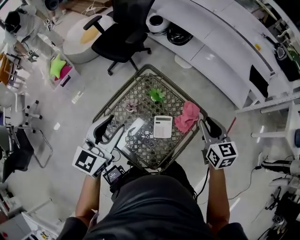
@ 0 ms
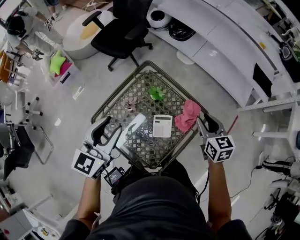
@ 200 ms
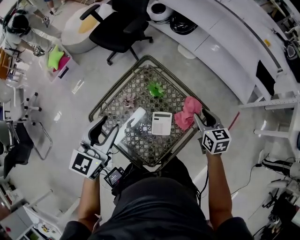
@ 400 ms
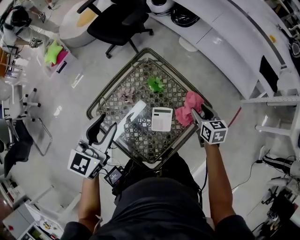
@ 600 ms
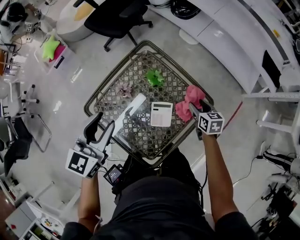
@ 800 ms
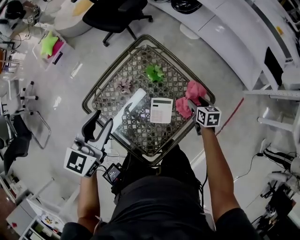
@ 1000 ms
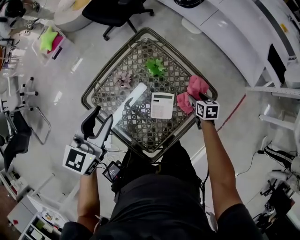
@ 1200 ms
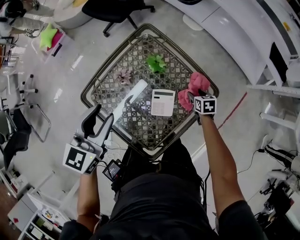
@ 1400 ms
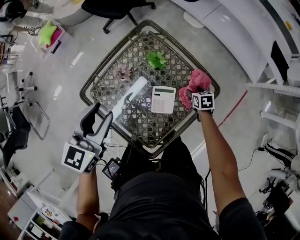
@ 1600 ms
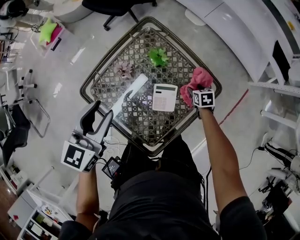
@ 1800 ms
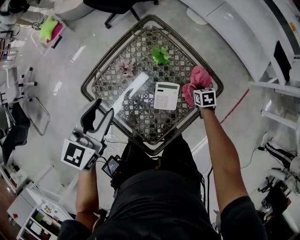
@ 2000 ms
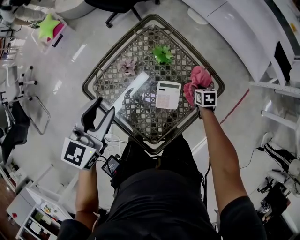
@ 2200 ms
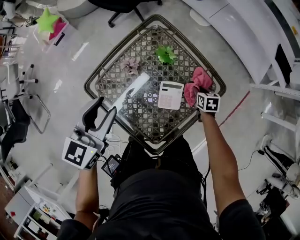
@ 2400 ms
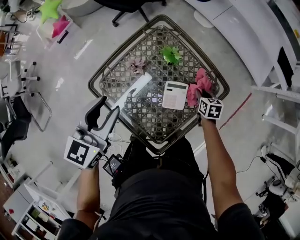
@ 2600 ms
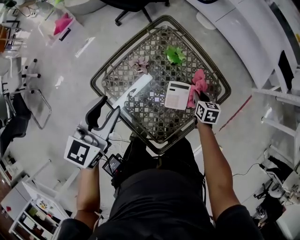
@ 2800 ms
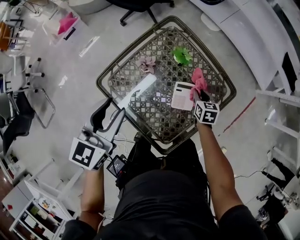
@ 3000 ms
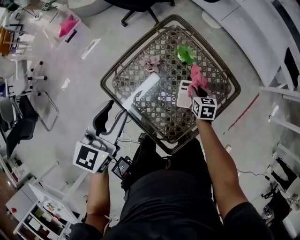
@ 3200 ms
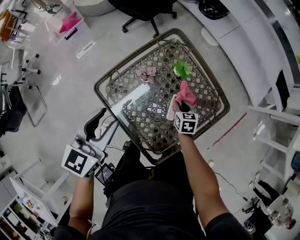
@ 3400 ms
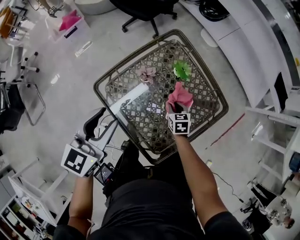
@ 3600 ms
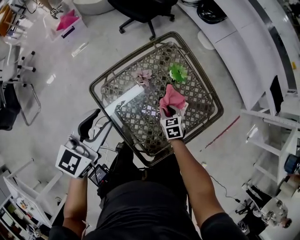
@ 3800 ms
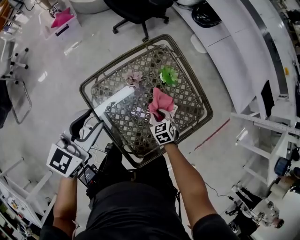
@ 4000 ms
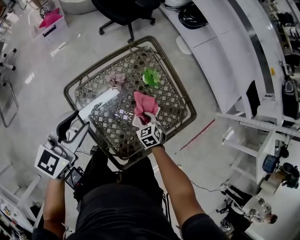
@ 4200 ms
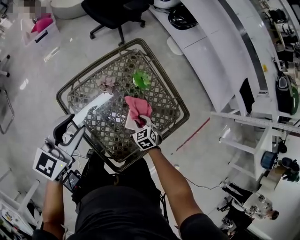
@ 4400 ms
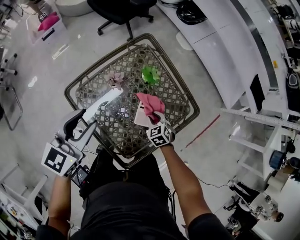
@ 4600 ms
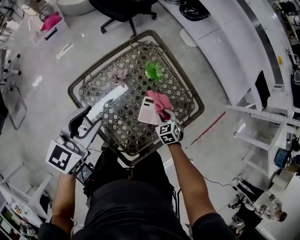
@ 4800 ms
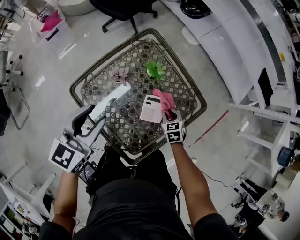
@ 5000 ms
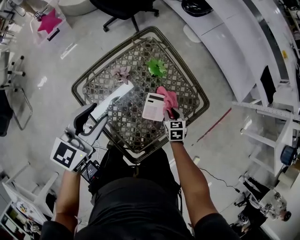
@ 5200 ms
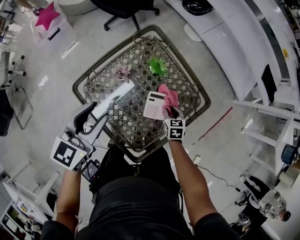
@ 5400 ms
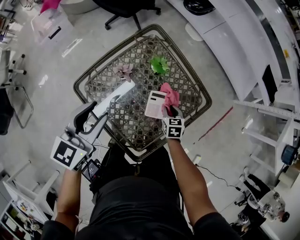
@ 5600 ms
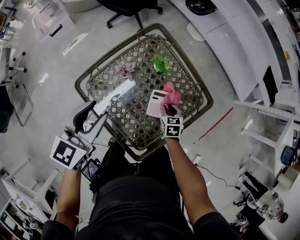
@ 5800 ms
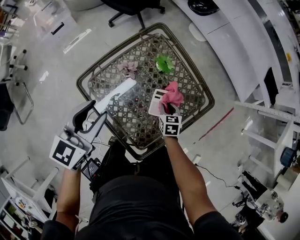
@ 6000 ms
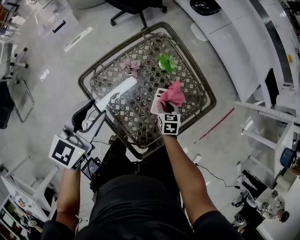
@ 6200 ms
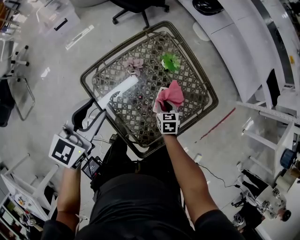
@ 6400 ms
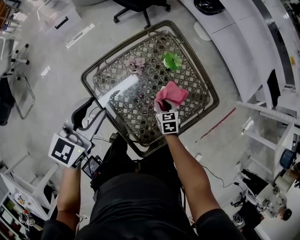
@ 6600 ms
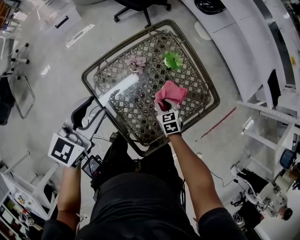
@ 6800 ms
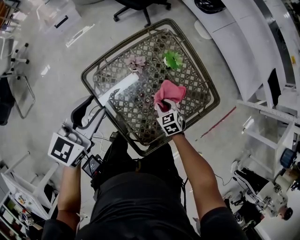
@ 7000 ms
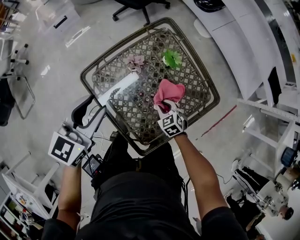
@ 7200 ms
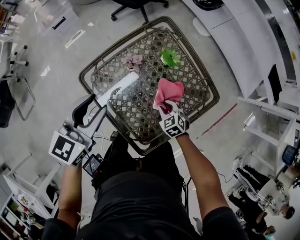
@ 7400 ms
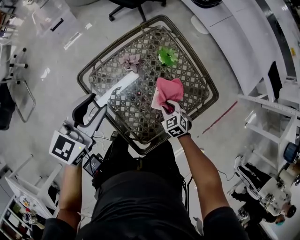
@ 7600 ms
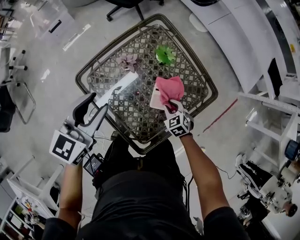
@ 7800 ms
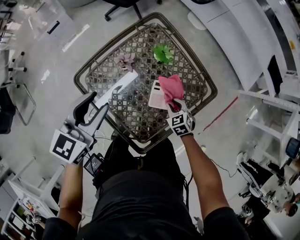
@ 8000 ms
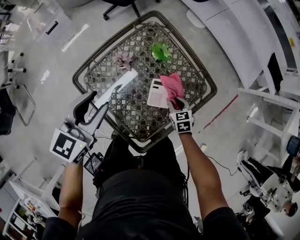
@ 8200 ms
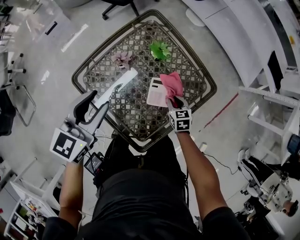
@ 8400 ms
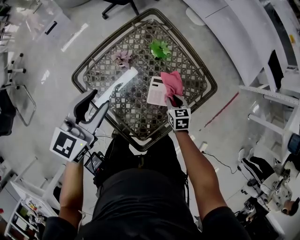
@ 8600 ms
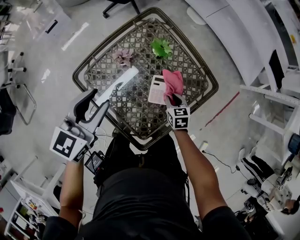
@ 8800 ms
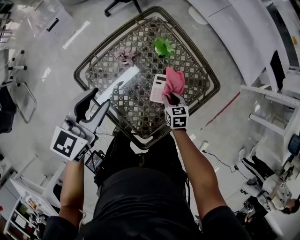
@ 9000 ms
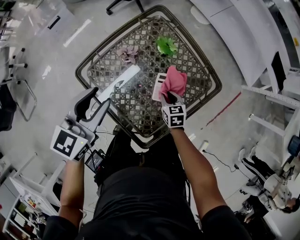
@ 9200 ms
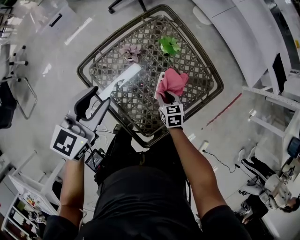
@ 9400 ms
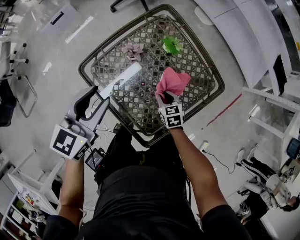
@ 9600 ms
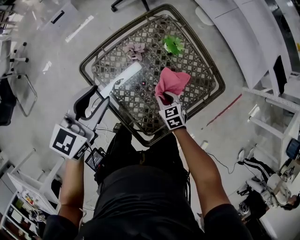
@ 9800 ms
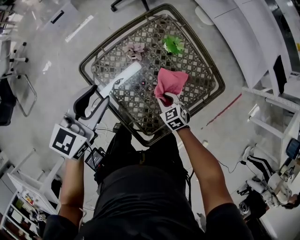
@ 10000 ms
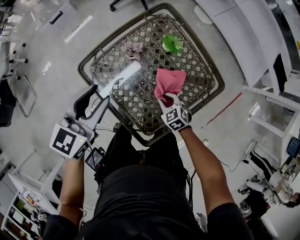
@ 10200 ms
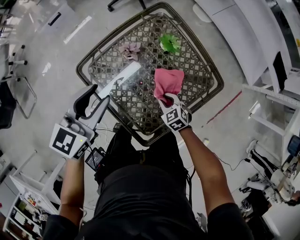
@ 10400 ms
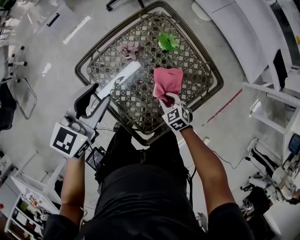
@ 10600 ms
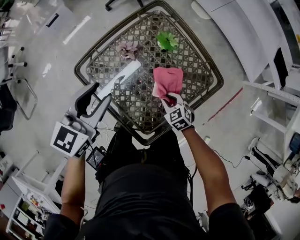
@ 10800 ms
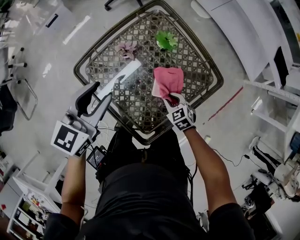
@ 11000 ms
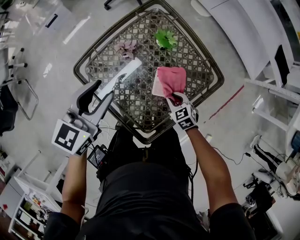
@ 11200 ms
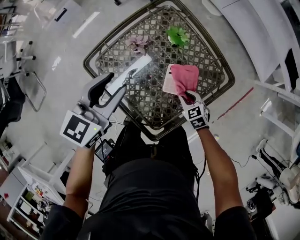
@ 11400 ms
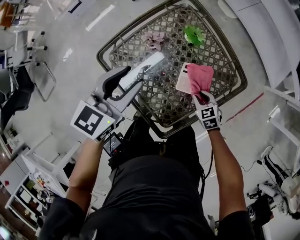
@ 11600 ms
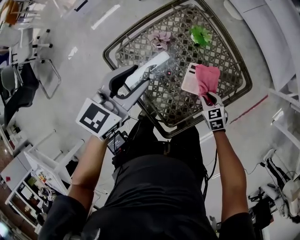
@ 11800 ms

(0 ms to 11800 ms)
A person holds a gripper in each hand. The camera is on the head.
0 ms - 1400 ms: The right gripper goes approximately 35 cm downward, tilts its fingers some 30 degrees downward, and opens up; the left gripper heads downward, covering some 10 cm.
1400 ms - 3000 ms: The right gripper goes about 10 cm to the left, and closes up, while the left gripper is displaced to the left by roughly 5 cm.
3000 ms - 4400 ms: The right gripper goes about 10 cm to the left and backward, and changes its angle by some 40 degrees.
4400 ms - 6000 ms: The right gripper goes to the right and returns, some 10 cm each way, and changes its angle by approximately 30 degrees.
6000 ms - 7400 ms: The right gripper shifts by roughly 5 cm, and swivels about 40 degrees.
7400 ms - 8800 ms: The right gripper is displaced to the right by about 5 cm, and turns by some 40 degrees.
8800 ms - 10400 ms: The right gripper travels to the left by about 10 cm, and rotates some 30 degrees.
10400 ms - 11800 ms: The right gripper is displaced to the right by approximately 10 cm.

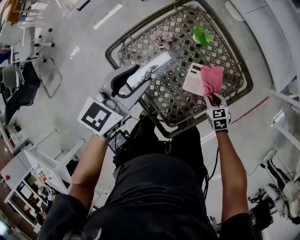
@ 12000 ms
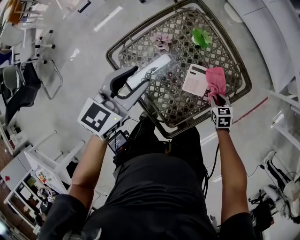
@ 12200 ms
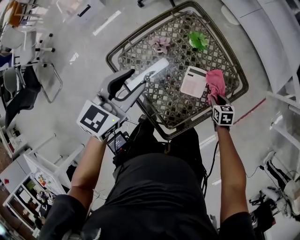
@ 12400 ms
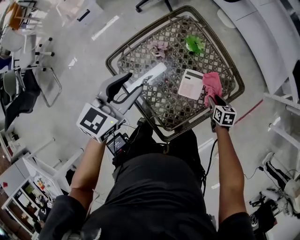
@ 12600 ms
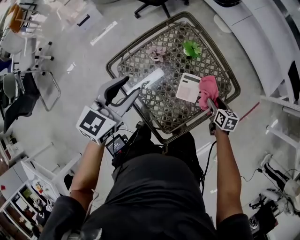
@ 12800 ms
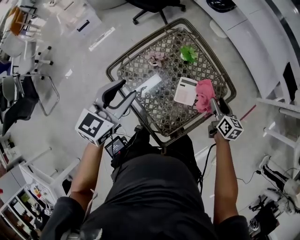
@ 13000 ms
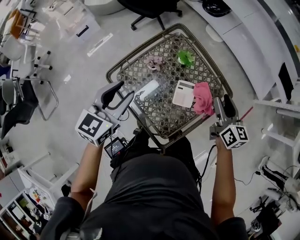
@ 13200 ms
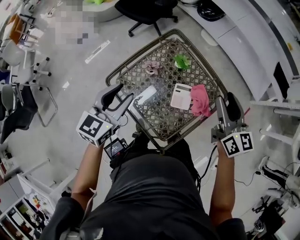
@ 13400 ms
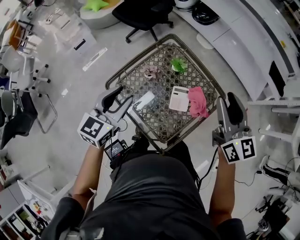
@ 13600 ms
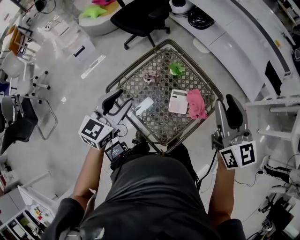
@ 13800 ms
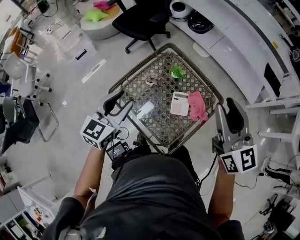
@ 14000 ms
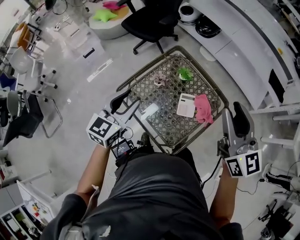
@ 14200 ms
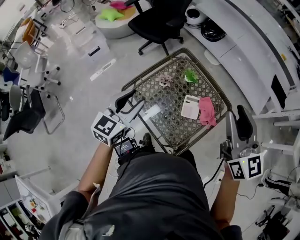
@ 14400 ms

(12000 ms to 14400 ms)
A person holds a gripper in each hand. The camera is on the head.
12000 ms - 13200 ms: The right gripper goes approximately 30 cm upward, tips its fingers upward by roughly 40 degrees, and opens up. The left gripper heads upward, covering some 5 cm.
13200 ms - 14400 ms: The left gripper ends up about 10 cm from where it was, while the right gripper moves upward and backward, about 30 cm, and turns by roughly 30 degrees.

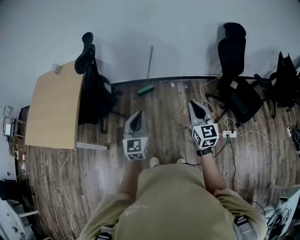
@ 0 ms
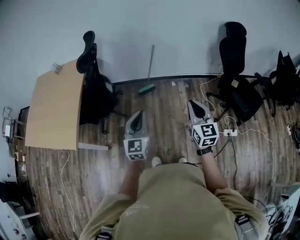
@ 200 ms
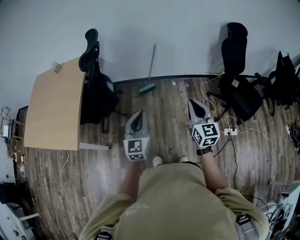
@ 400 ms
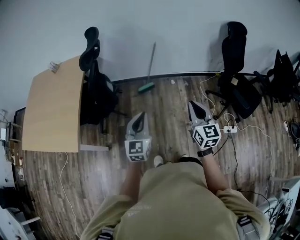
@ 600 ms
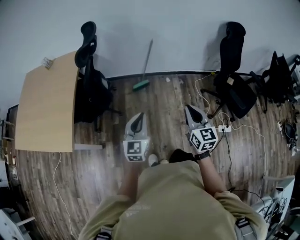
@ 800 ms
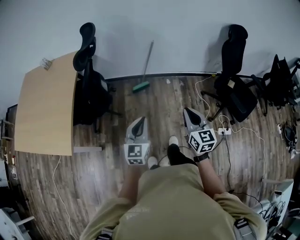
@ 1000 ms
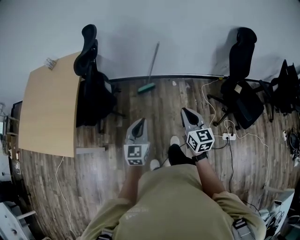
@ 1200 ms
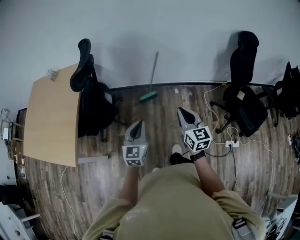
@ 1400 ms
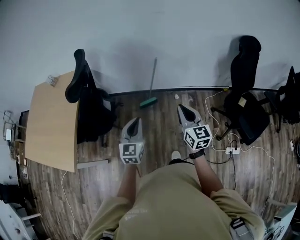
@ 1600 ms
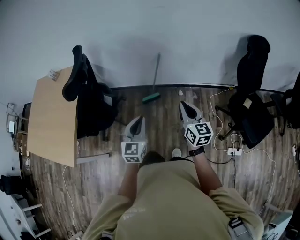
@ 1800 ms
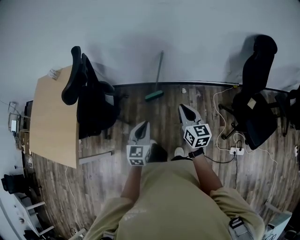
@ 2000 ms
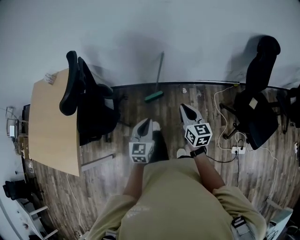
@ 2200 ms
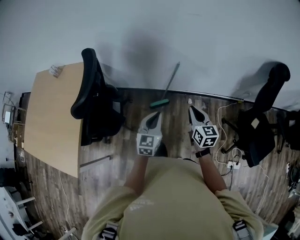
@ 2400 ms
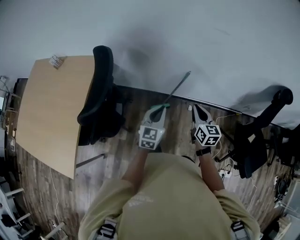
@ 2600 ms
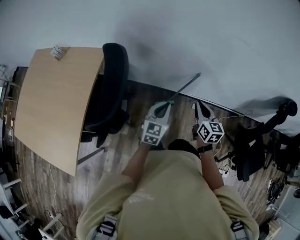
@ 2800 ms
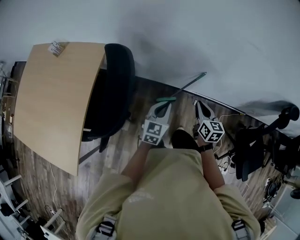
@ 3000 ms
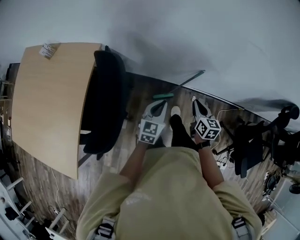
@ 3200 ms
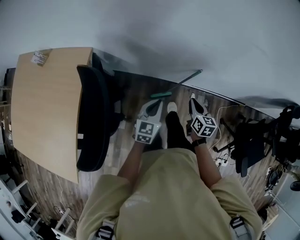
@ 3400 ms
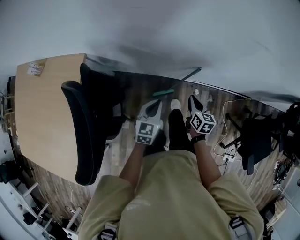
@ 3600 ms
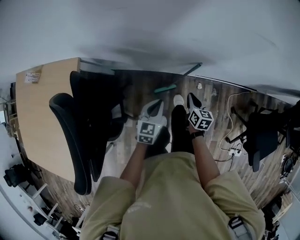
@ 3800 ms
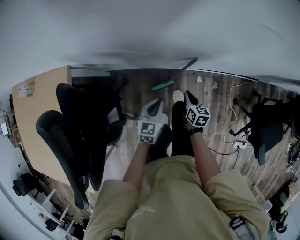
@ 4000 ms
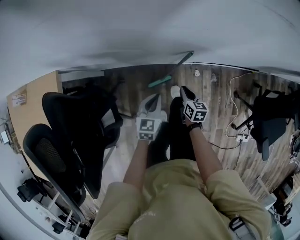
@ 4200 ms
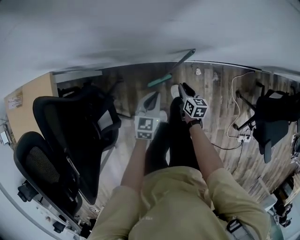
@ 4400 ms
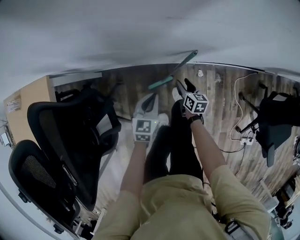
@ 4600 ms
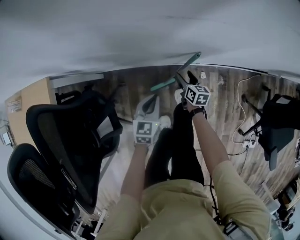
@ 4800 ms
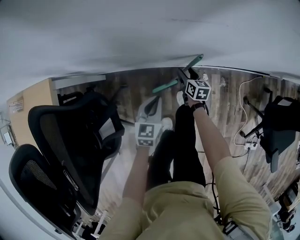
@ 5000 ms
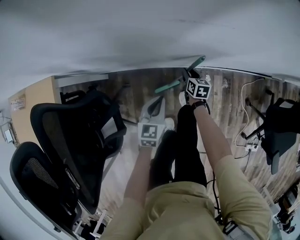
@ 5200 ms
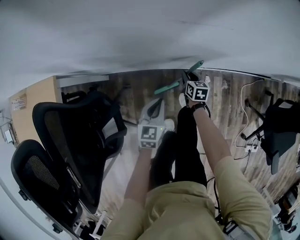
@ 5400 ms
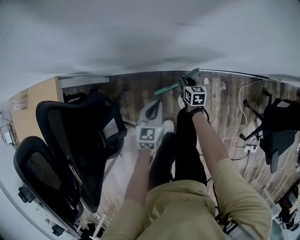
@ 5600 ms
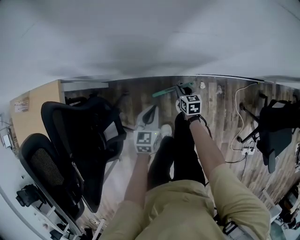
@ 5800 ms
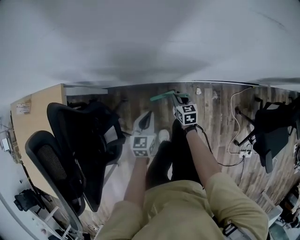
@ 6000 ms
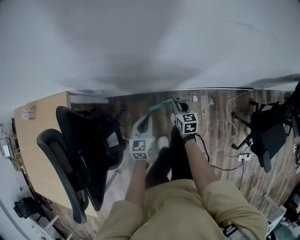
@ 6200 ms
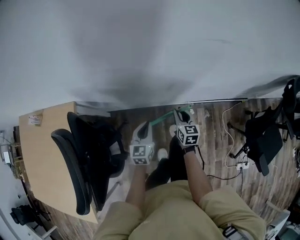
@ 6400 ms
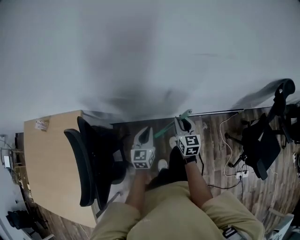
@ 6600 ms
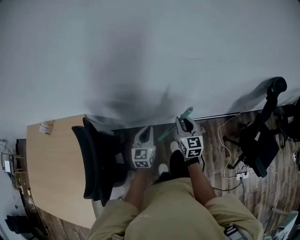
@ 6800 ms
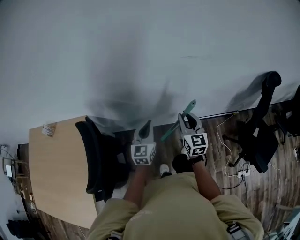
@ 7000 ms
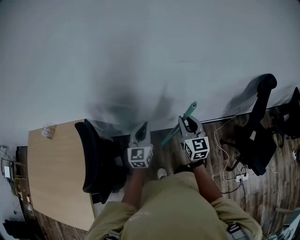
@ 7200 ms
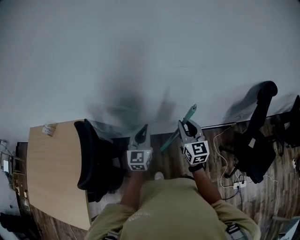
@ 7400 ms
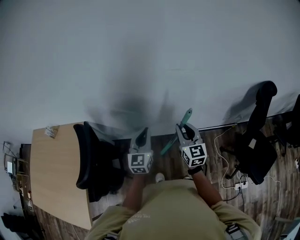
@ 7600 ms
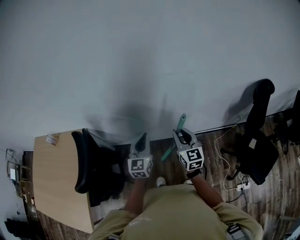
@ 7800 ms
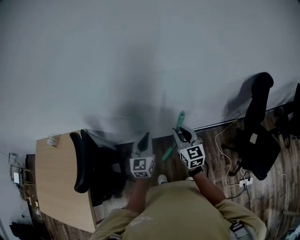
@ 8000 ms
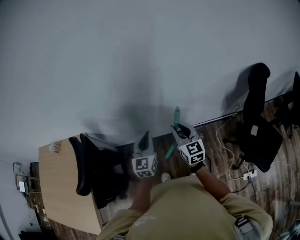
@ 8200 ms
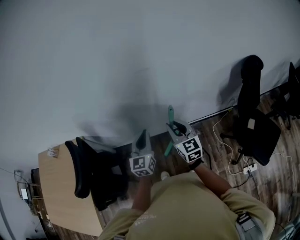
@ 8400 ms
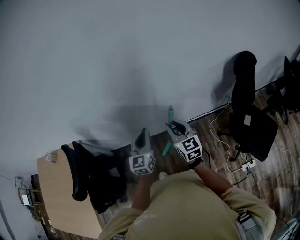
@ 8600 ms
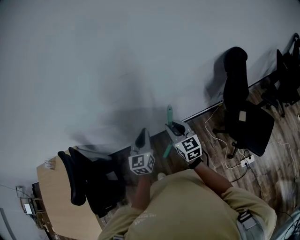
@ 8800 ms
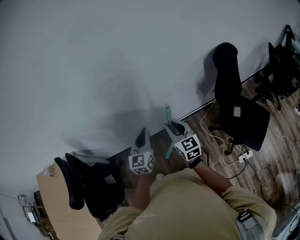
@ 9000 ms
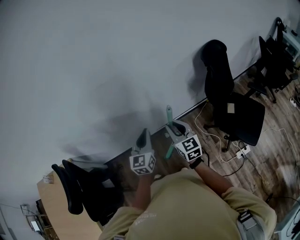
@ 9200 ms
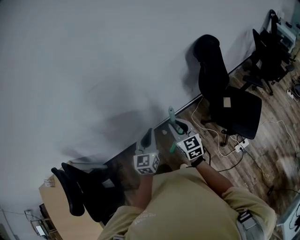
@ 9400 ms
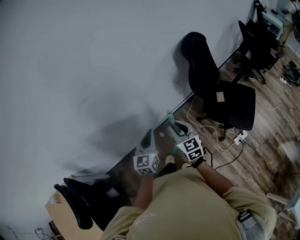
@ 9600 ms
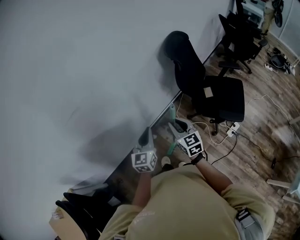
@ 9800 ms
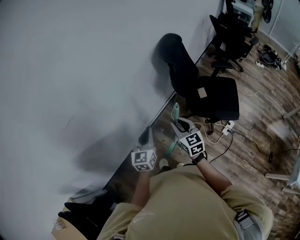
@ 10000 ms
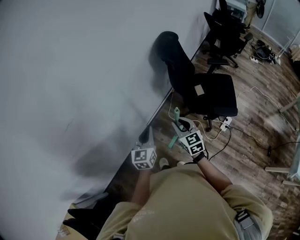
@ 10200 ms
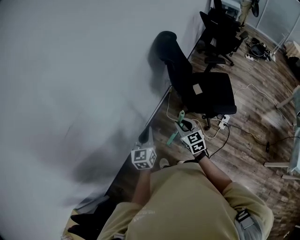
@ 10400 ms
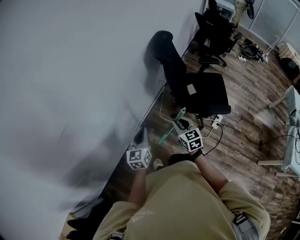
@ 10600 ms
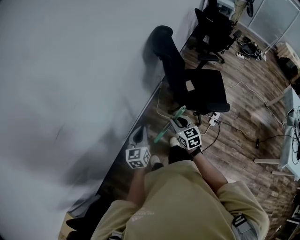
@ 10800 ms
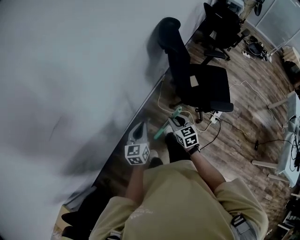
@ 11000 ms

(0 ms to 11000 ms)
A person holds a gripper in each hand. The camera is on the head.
0 ms - 1600 ms: Both grippers travel together forward, approximately 20 cm.
1600 ms - 3200 ms: The pair of grippers is taken forward, roughly 40 cm. The right gripper moves downward, approximately 20 cm, and rotates about 30 degrees.
3200 ms - 4800 ms: Both grippers move downward and forward, approximately 35 cm. The right gripper opens.
4800 ms - 6200 ms: The two grippers go approximately 15 cm upward. The right gripper closes up.
6200 ms - 7800 ms: The two grippers go roughly 35 cm upward. The right gripper rotates roughly 30 degrees; the left gripper turns by approximately 30 degrees.
7800 ms - 9400 ms: The grippers both shift to the right by some 25 cm. The left gripper swivels some 30 degrees.
9400 ms - 11000 ms: The right gripper shifts approximately 15 cm downward, and changes its angle by approximately 30 degrees; the left gripper shifts by about 20 cm, and rotates roughly 30 degrees.
